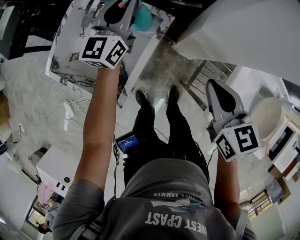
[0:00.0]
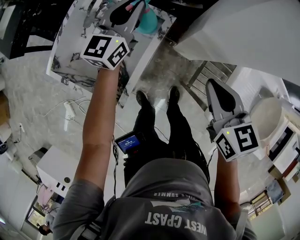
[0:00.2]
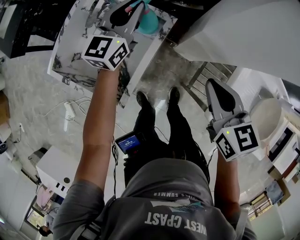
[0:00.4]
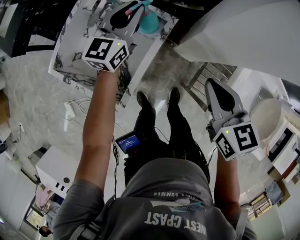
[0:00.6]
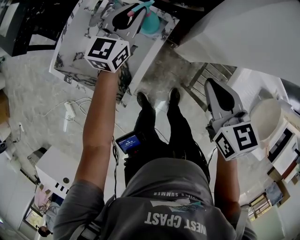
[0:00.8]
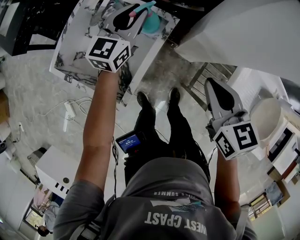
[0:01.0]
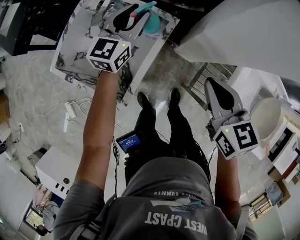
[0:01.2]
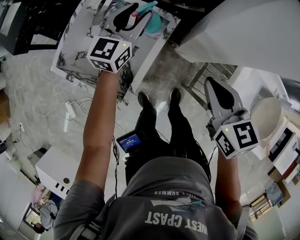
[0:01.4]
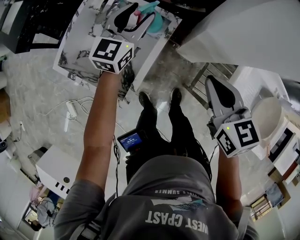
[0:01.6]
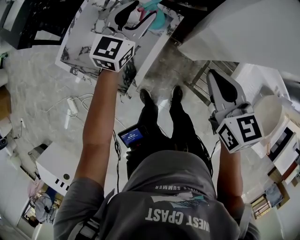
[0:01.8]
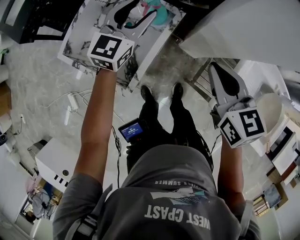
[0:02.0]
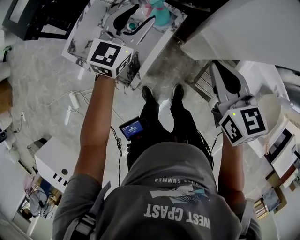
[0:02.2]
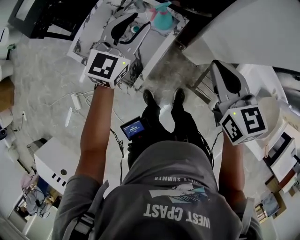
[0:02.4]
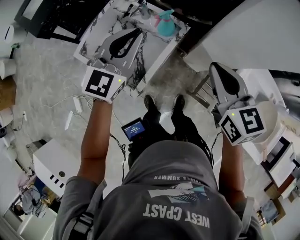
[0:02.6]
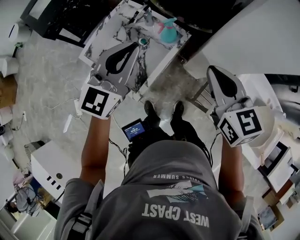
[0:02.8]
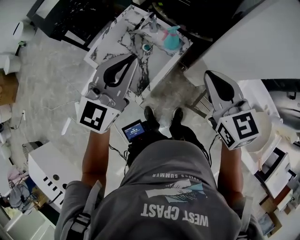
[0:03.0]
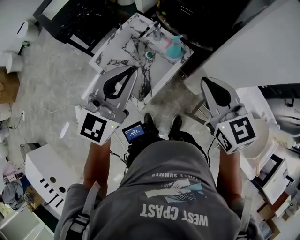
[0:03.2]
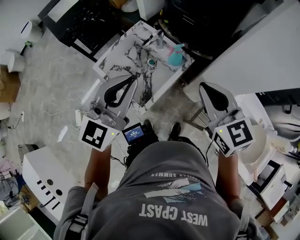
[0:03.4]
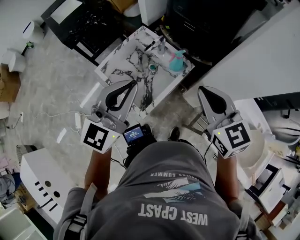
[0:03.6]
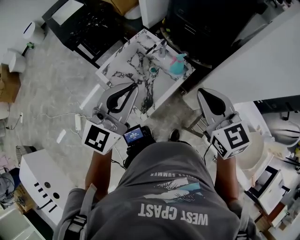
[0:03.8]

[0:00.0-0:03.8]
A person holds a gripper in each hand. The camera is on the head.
0:00.0 to 0:01.2: The grippers stay close to where they were, moving slightly.
0:01.2 to 0:02.6: The right gripper is displaced upward by about 10 cm. Meanwhile the left gripper travels upward and backward by about 20 cm, and closes up.
0:02.6 to 0:03.8: The right gripper goes some 15 cm upward and to the left, while the left gripper is displaced upward, backward and to the left by roughly 20 cm.

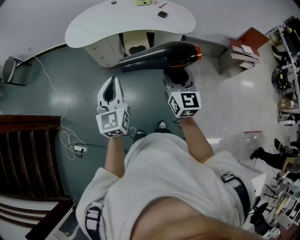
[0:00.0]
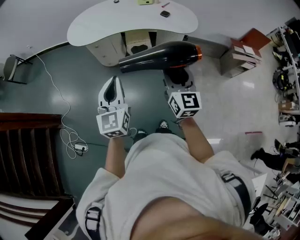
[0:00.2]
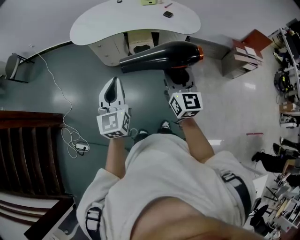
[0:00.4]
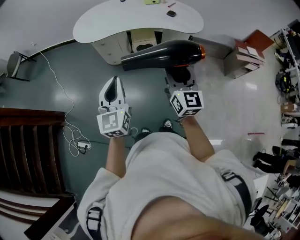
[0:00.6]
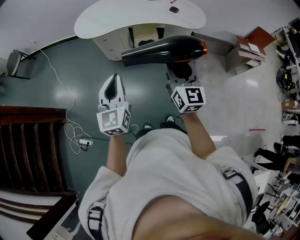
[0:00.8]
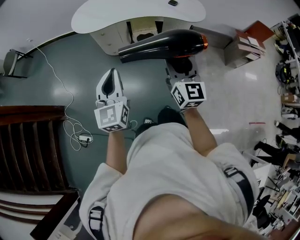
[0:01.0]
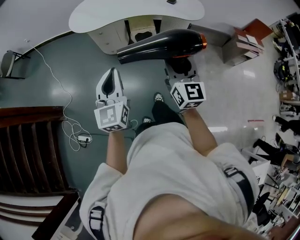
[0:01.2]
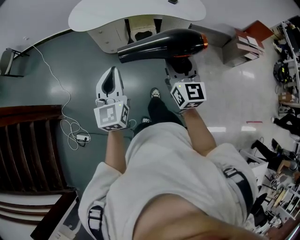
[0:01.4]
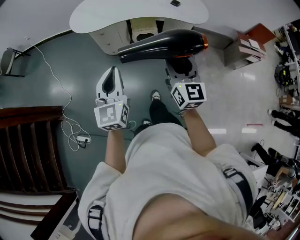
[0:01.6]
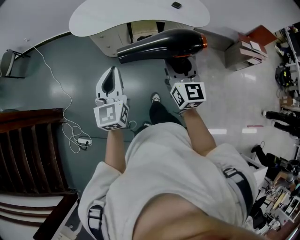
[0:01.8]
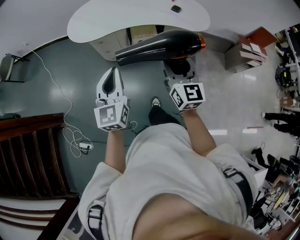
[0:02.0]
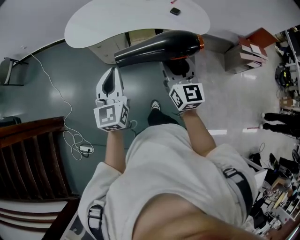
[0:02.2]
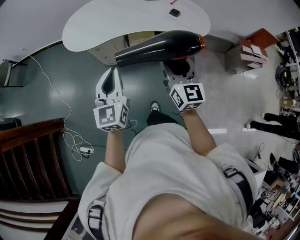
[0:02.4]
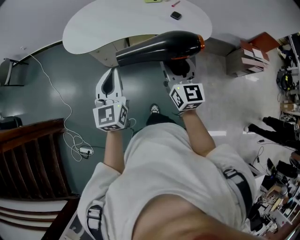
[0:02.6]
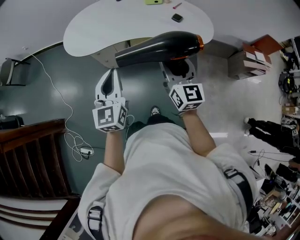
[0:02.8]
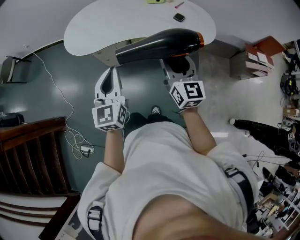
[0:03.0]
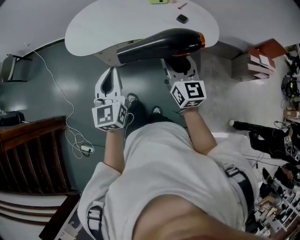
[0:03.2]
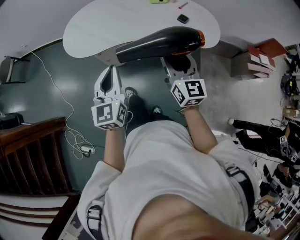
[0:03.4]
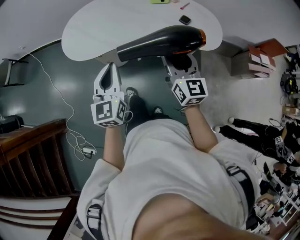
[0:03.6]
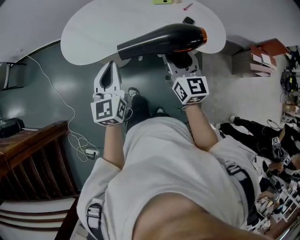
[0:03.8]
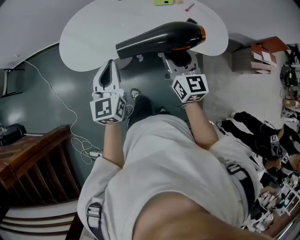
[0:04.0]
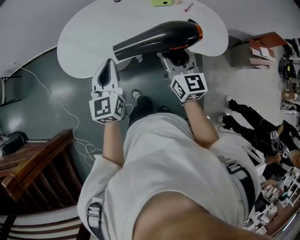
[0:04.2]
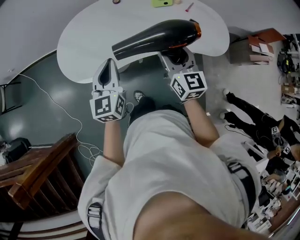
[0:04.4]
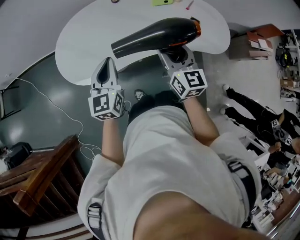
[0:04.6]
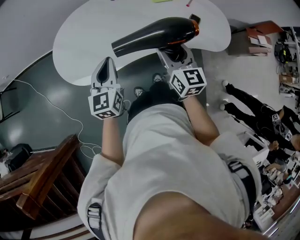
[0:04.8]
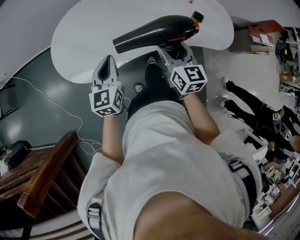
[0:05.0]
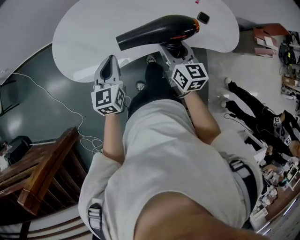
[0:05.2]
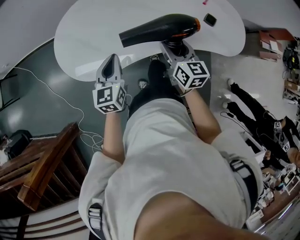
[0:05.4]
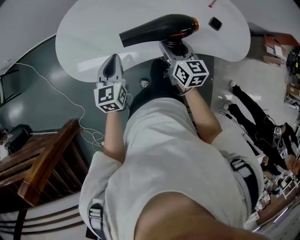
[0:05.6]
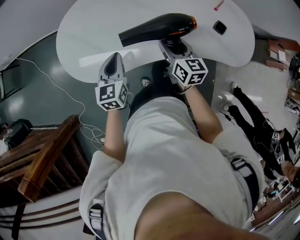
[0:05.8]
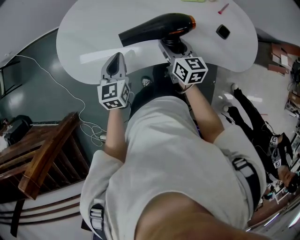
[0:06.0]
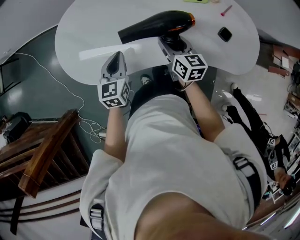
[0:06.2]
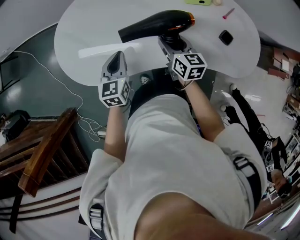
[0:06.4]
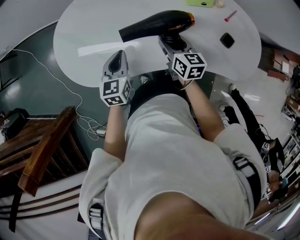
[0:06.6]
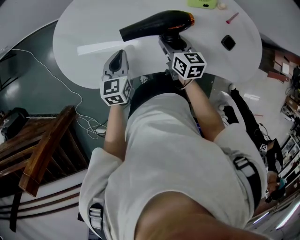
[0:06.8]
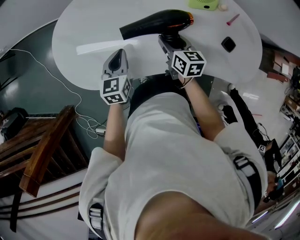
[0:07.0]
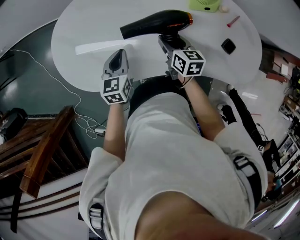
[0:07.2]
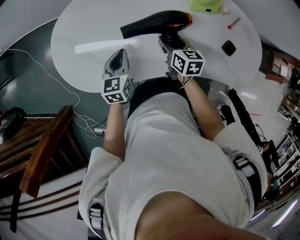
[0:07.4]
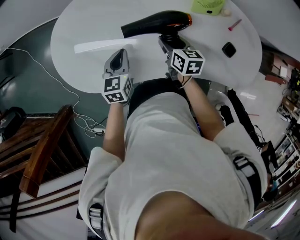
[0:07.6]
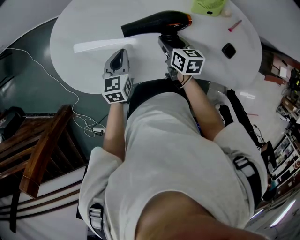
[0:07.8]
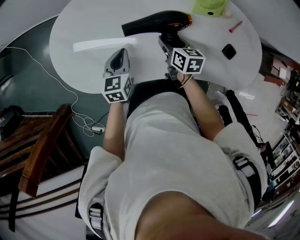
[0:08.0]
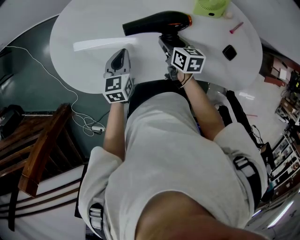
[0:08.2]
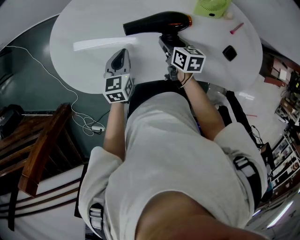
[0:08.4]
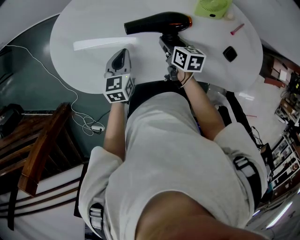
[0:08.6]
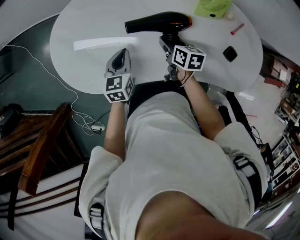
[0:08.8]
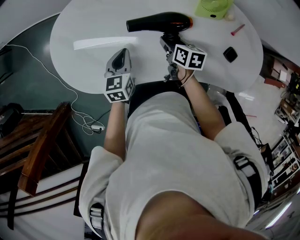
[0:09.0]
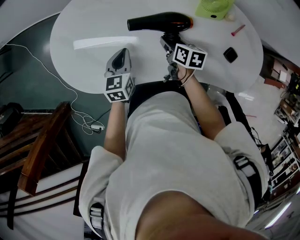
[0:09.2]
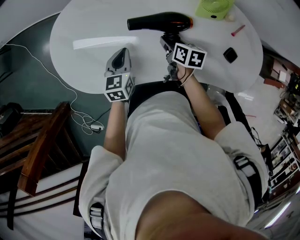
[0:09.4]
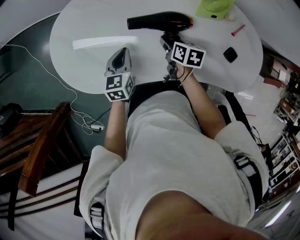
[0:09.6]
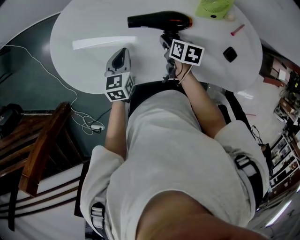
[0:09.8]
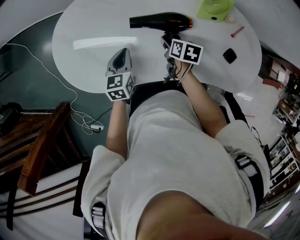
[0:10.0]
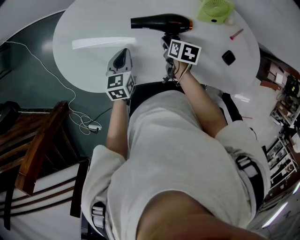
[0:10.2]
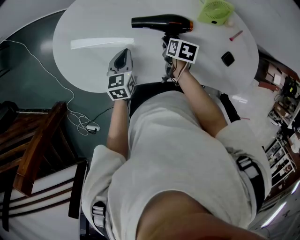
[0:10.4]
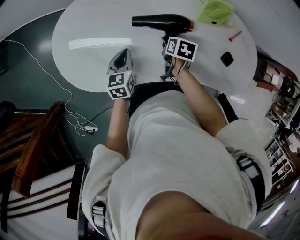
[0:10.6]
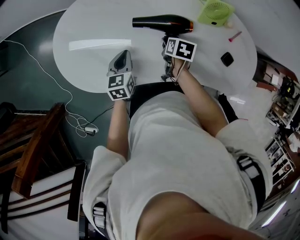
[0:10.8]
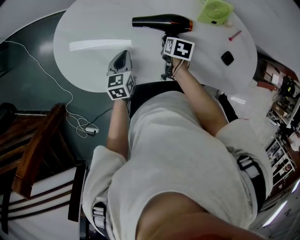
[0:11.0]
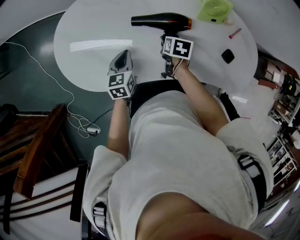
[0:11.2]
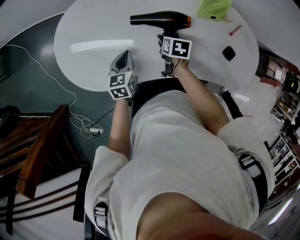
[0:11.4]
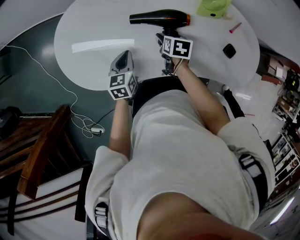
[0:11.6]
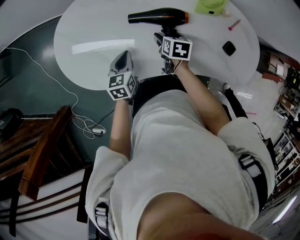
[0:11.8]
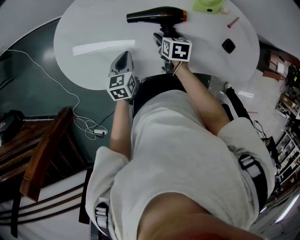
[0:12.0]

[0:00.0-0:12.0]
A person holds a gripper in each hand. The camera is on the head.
0:00.0 to 0:01.6: The grippers both shift to the left by about 10 cm.
0:01.6 to 0:03.0: The grippers both shift forward by about 25 cm.
0:03.0 to 0:04.4: The right gripper heads forward and to the left, covering some 25 cm, while the left gripper shifts roughly 30 cm forward.
0:04.4 to 0:06.0: Both grippers move downward and forward, some 20 cm. The right gripper rotates some 30 degrees.
0:06.0 to 0:07.6: The two grippers go roughly 10 cm forward and downward.
0:07.6 to 0:09.0: The grippers make only small movements.
0:09.0 to 0:10.4: The grippers stay close to where they were, moving slightly.
0:10.4 to 0:12.0: The right gripper opens its fingers.

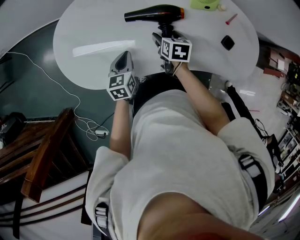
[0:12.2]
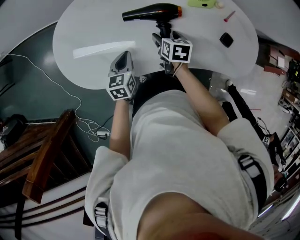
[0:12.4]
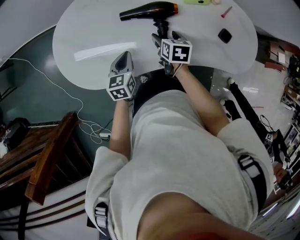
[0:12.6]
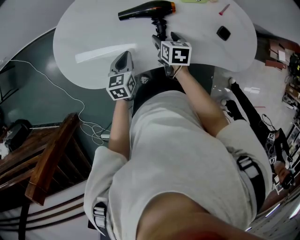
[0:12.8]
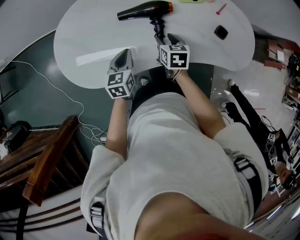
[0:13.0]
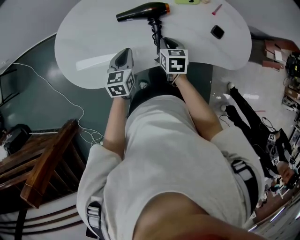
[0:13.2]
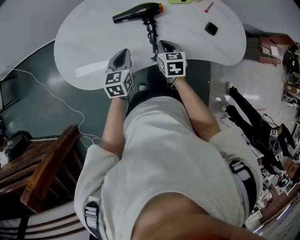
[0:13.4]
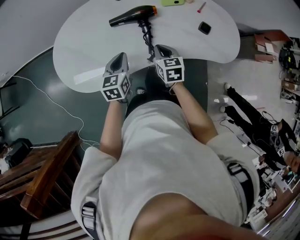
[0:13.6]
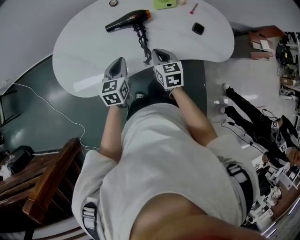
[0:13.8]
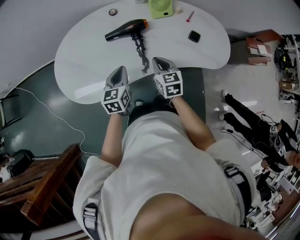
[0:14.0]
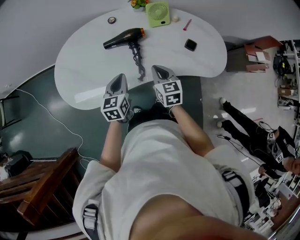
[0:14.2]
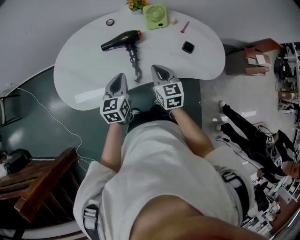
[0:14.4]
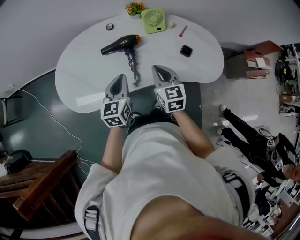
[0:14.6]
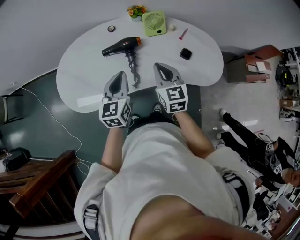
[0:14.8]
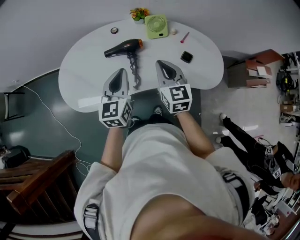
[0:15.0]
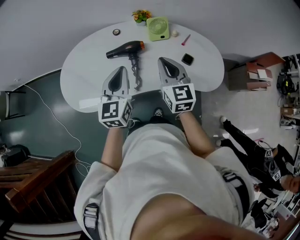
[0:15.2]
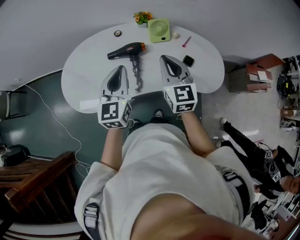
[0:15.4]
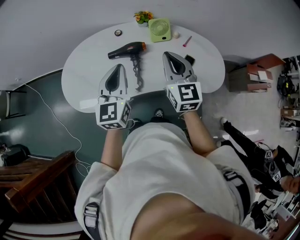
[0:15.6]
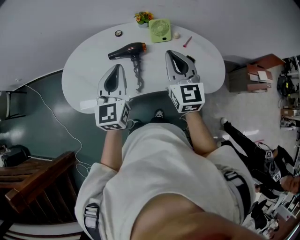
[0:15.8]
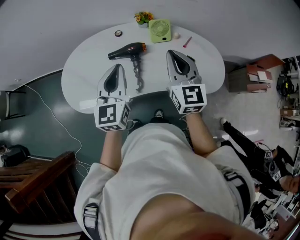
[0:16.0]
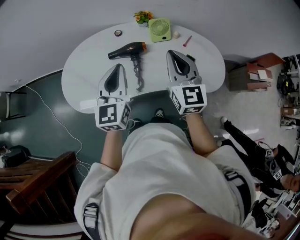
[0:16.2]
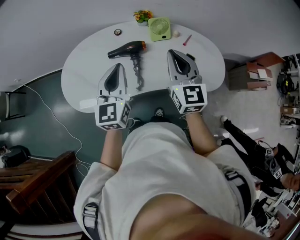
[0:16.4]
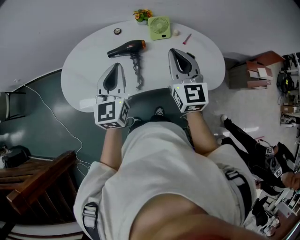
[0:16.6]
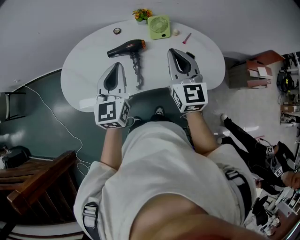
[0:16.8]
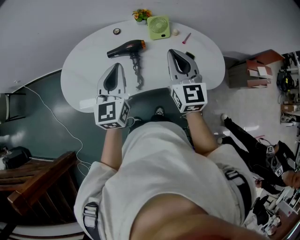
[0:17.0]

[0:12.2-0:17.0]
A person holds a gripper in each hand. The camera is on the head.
0:12.2 to 0:13.8: The right gripper shifts some 15 cm backward and upward, turns by about 20 degrees, and closes. Meanwhile the left gripper heads upward, backward and to the right, covering approximately 10 cm.
0:13.8 to 0:15.4: The left gripper shifts roughly 25 cm upward and to the right, and changes its angle by about 30 degrees. The right gripper heads upward, covering about 20 cm, and changes its angle by some 30 degrees.
0:15.4 to 0:17.0: The grippers move only a little.

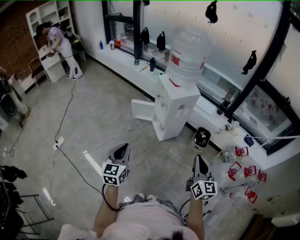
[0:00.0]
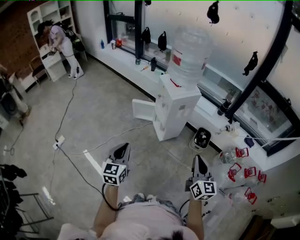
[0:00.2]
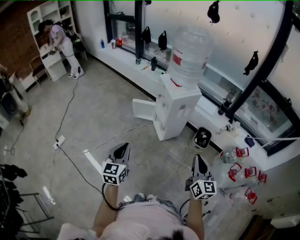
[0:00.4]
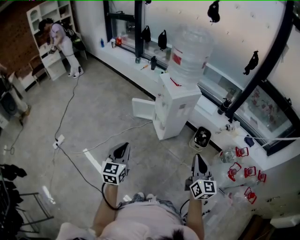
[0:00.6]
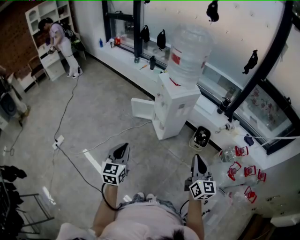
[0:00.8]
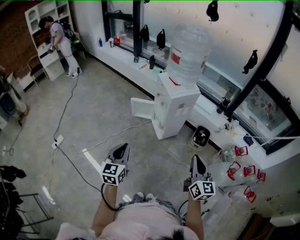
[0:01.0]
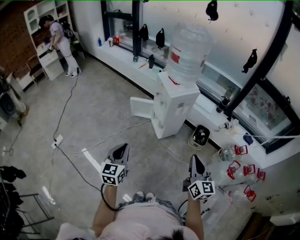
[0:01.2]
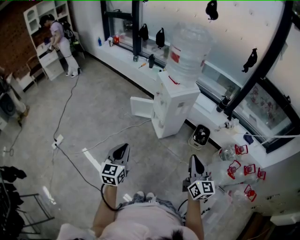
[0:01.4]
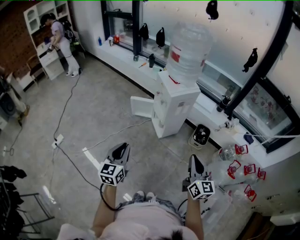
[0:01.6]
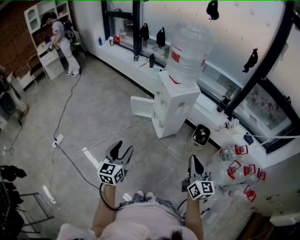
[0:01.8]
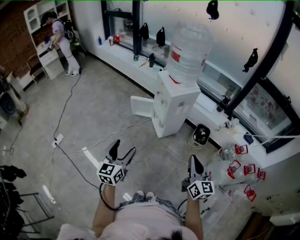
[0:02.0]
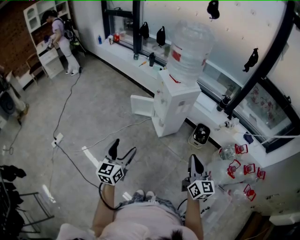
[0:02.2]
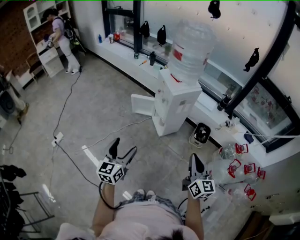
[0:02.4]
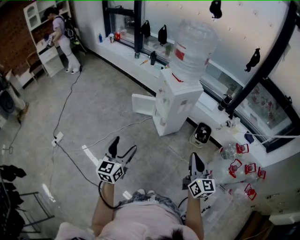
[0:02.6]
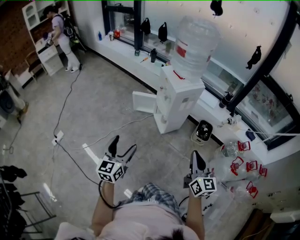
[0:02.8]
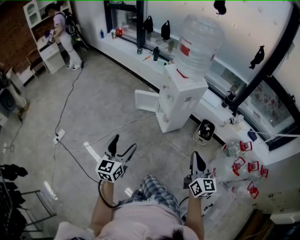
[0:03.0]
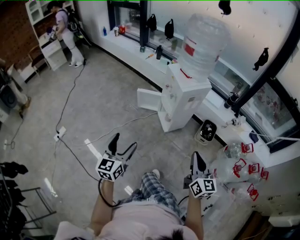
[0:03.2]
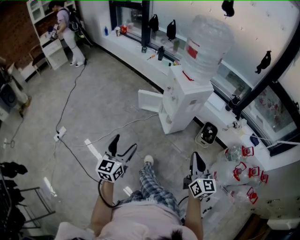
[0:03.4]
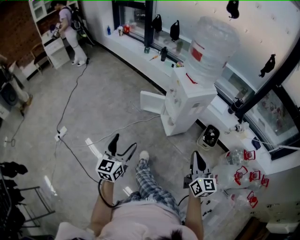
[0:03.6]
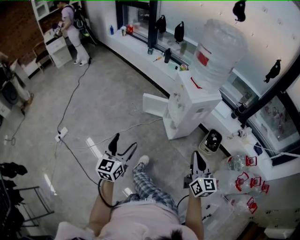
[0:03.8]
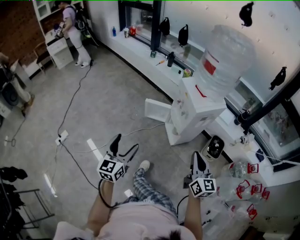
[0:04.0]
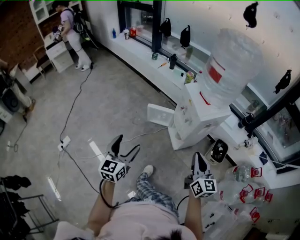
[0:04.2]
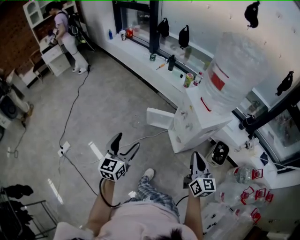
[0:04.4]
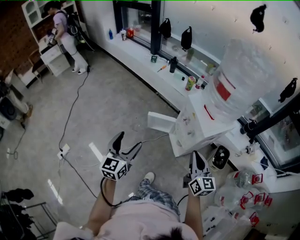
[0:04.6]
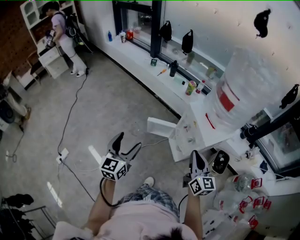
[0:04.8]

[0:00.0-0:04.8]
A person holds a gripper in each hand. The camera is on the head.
0:00.0 to 0:01.6: The grippers stay close to where they were, moving slightly.
0:01.6 to 0:03.2: Both grippers move to the left, about 5 cm. The left gripper opens its fingers.
0:03.2 to 0:04.8: Both grippers move forward, some 40 cm.
